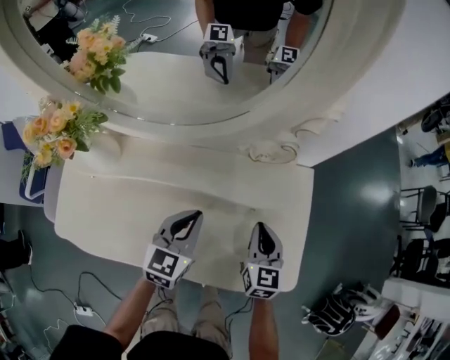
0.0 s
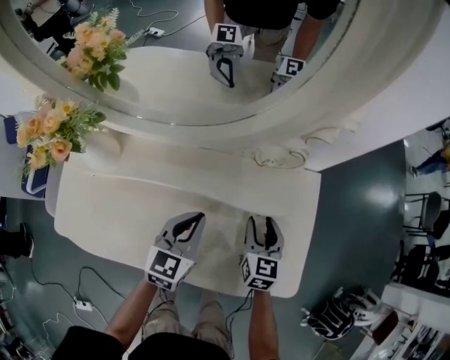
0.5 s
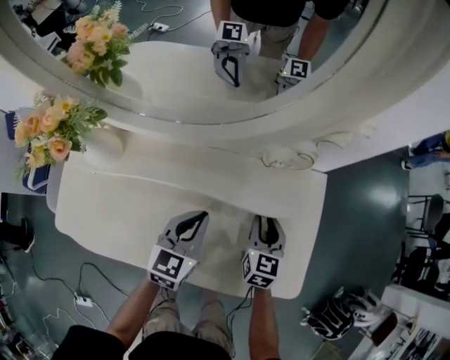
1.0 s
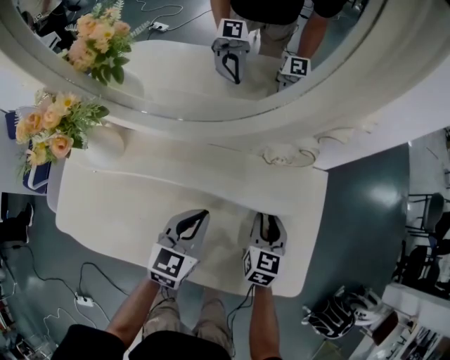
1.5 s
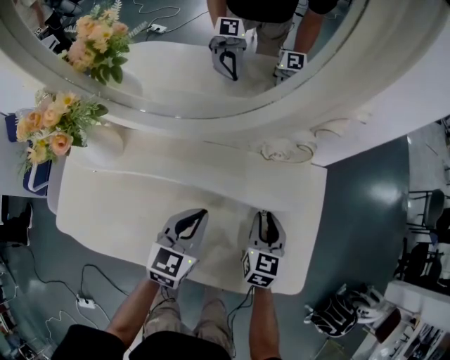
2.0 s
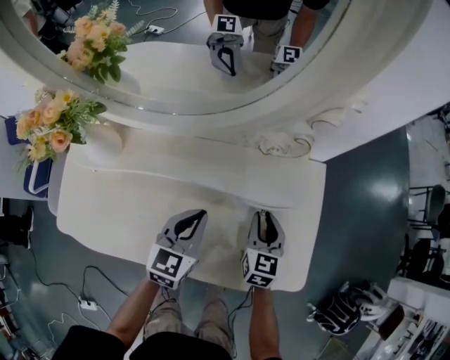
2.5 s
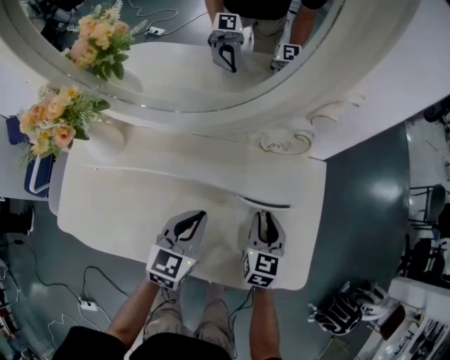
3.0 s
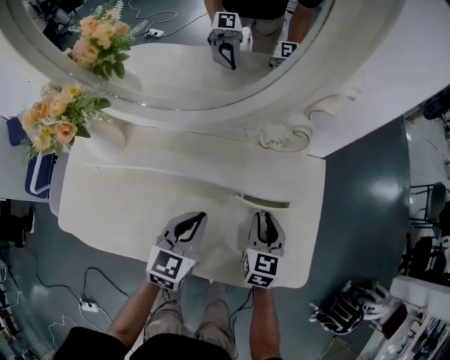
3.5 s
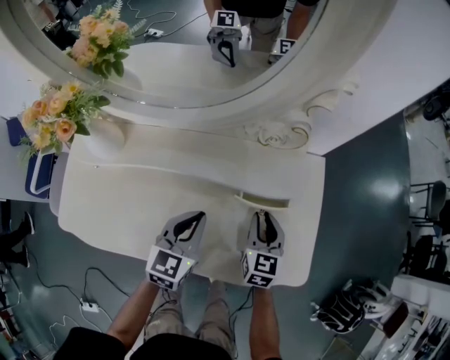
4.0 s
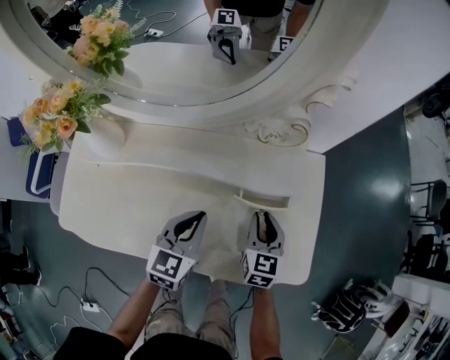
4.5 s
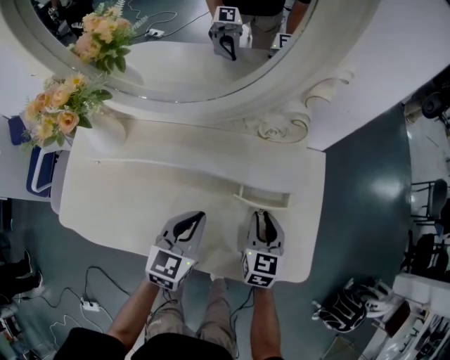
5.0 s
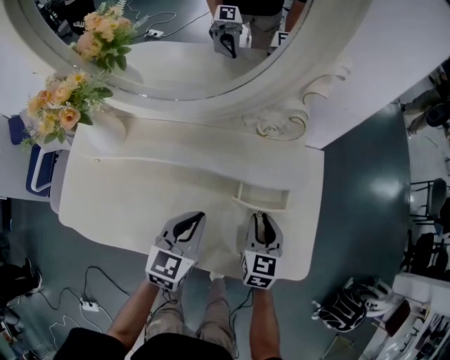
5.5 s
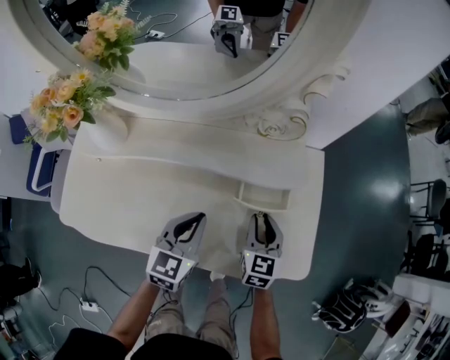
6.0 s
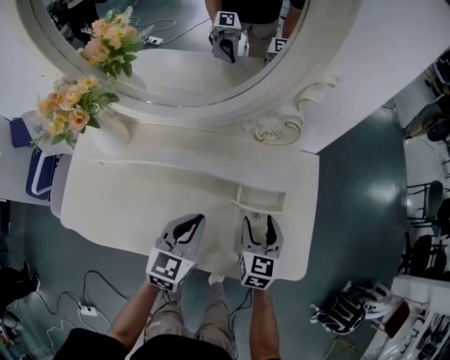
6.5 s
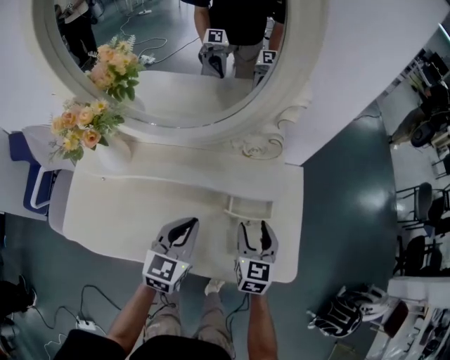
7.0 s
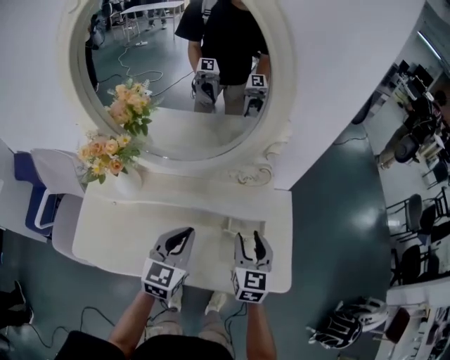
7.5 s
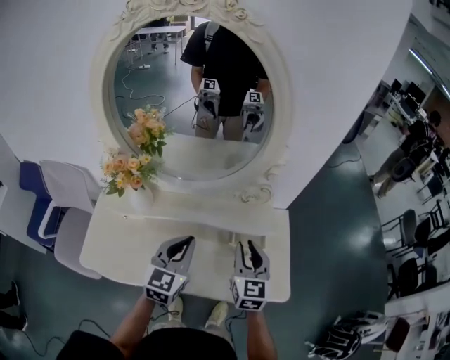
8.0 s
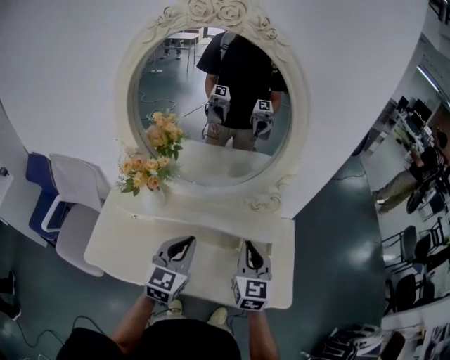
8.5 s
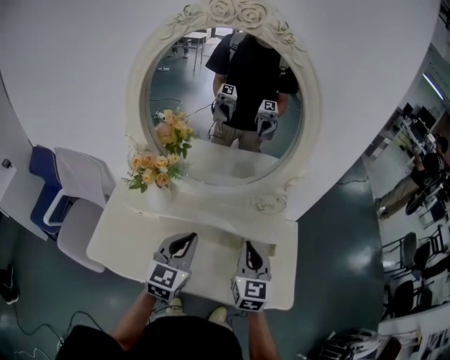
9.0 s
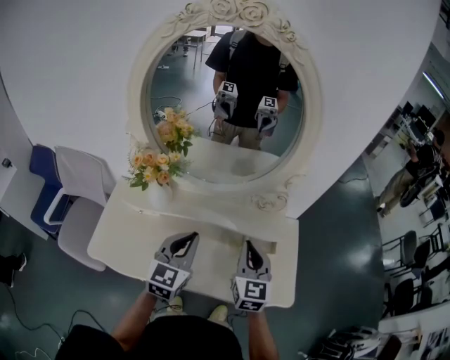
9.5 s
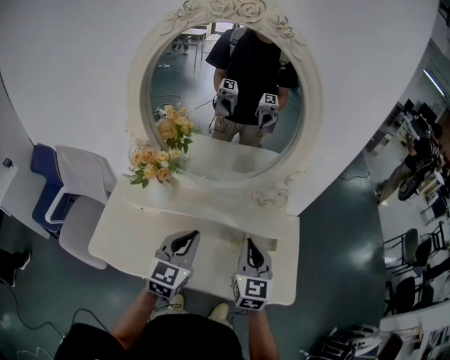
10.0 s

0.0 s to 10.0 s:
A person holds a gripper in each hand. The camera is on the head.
0.0 to 2.0 s: The right gripper shifts by about 5 cm, and opens.
2.0 to 4.0 s: The grippers make only small movements.
4.0 to 6.0 s: The grippers make only small movements.
6.0 to 8.0 s: The two grippers go some 20 cm upward. The right gripper opens, then closes again.
8.0 to 10.0 s: The right gripper goes roughly 5 cm to the left, and closes, while the left gripper moves about 5 cm.

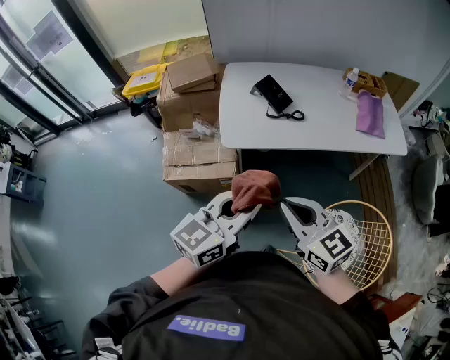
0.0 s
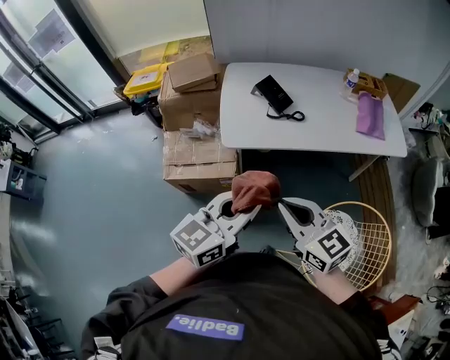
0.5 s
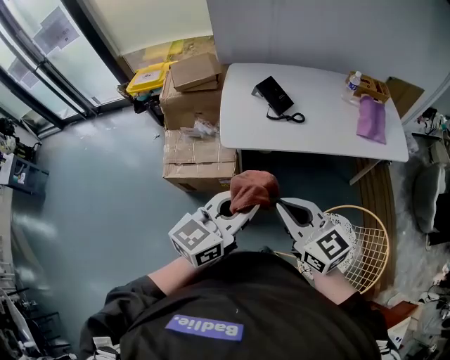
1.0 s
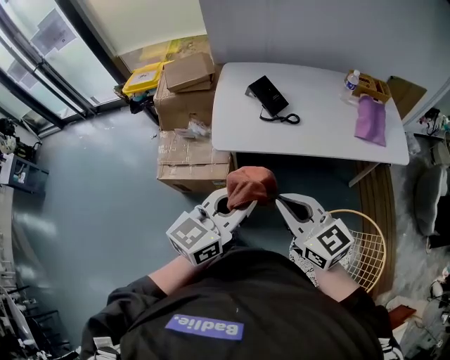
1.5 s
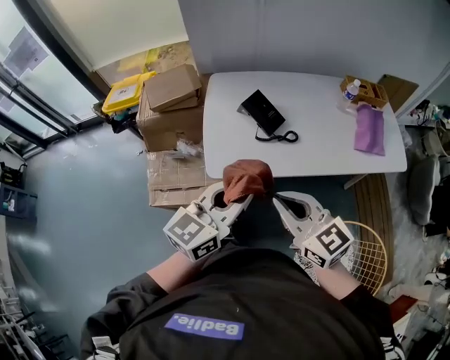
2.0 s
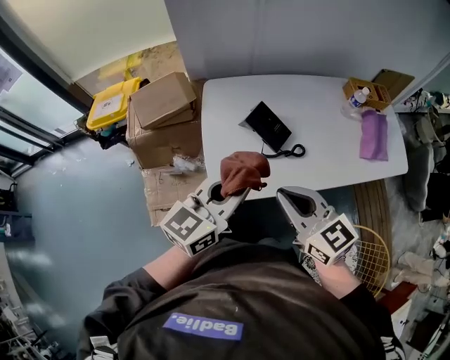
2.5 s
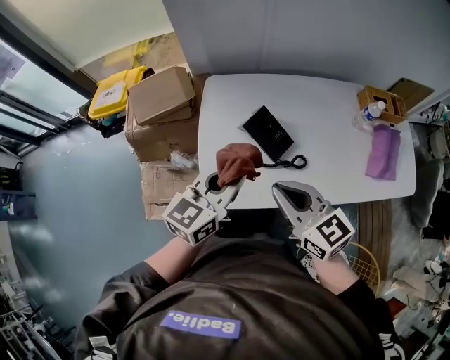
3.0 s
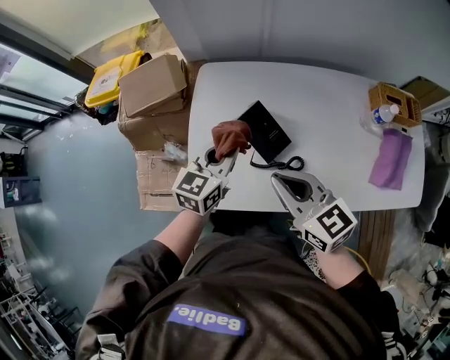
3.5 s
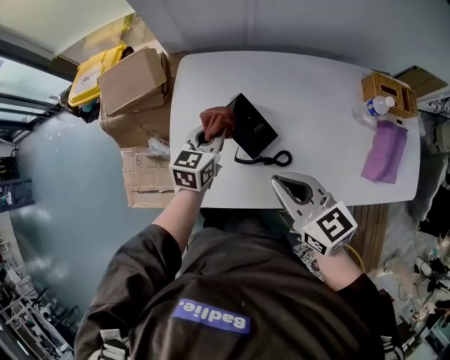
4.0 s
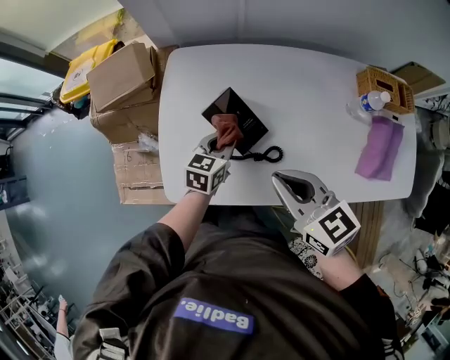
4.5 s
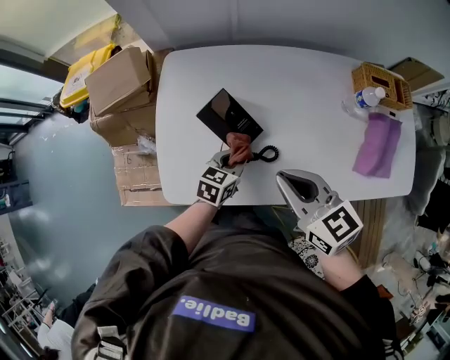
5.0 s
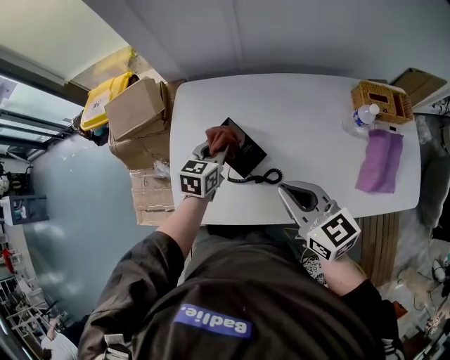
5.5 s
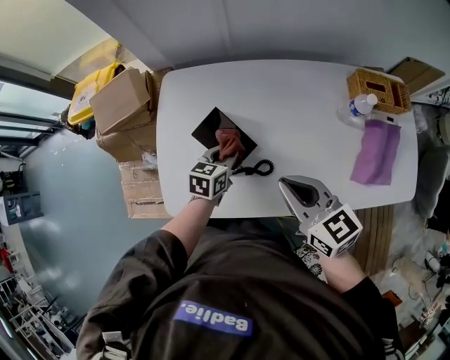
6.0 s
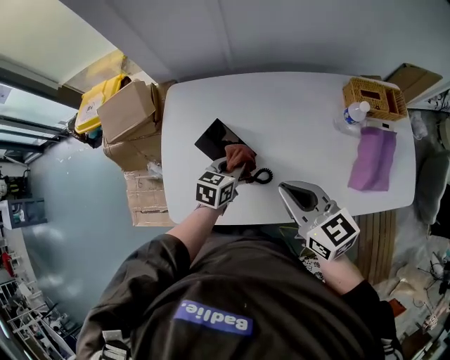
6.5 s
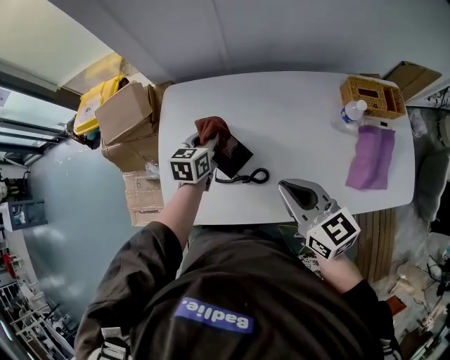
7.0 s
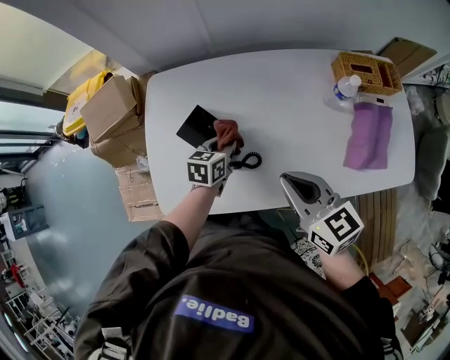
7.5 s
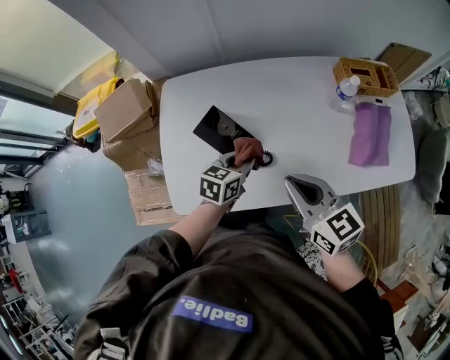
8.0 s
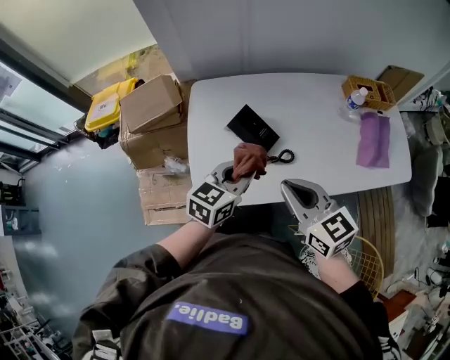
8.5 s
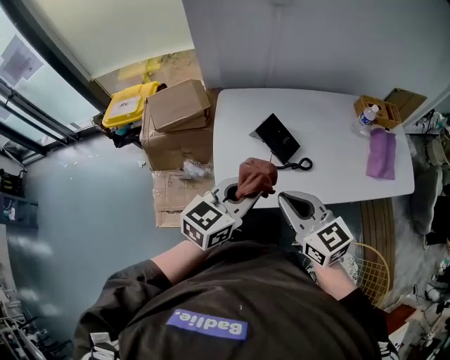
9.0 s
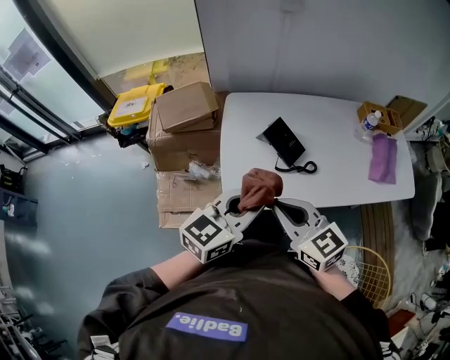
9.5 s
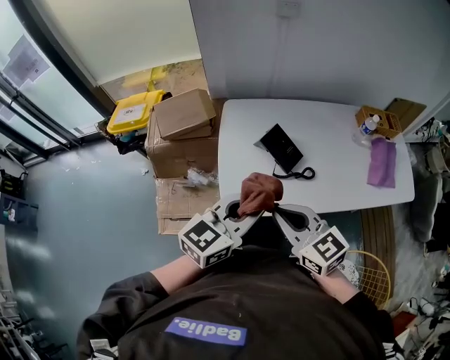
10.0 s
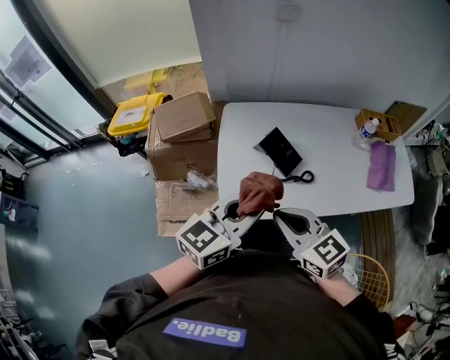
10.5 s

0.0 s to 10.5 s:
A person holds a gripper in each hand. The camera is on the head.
0.0 to 2.0 s: The two grippers go roughly 15 cm forward.
2.0 to 4.0 s: The left gripper moves forward and downward, about 40 cm, and changes its angle by some 30 degrees. Meanwhile the right gripper goes about 25 cm forward.
4.0 to 6.5 s: The right gripper travels to the right by some 10 cm. The left gripper goes left and right, roughly 15 cm each way, reversing 2 times.
6.5 to 8.5 s: The left gripper shifts about 20 cm upward, backward and to the left, and changes its angle by about 20 degrees; the right gripper heads to the left and backward, covering about 15 cm.
8.5 to 10.5 s: The right gripper is displaced to the left and backward by roughly 15 cm. The left gripper heads upward, backward and to the left, covering some 20 cm.

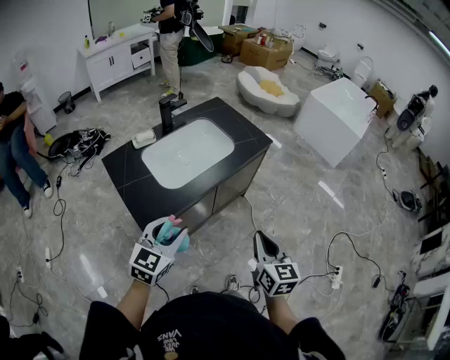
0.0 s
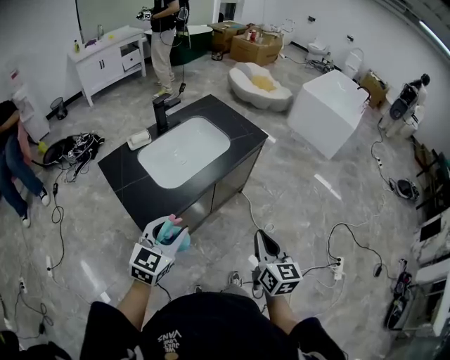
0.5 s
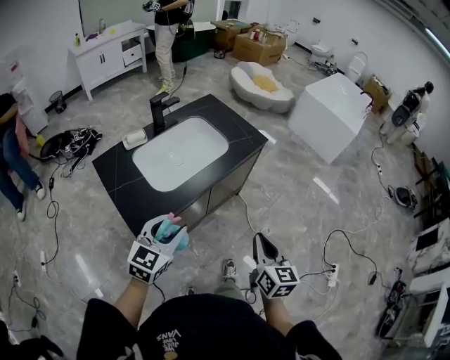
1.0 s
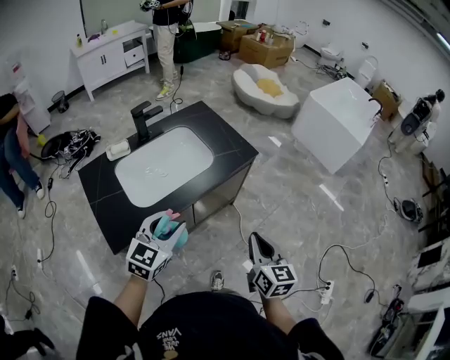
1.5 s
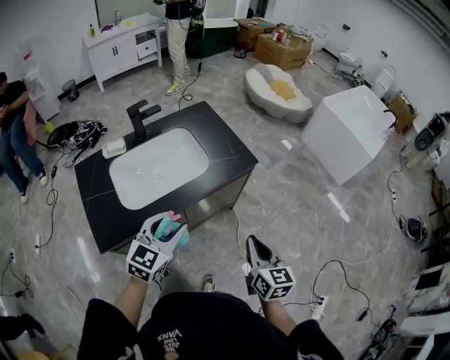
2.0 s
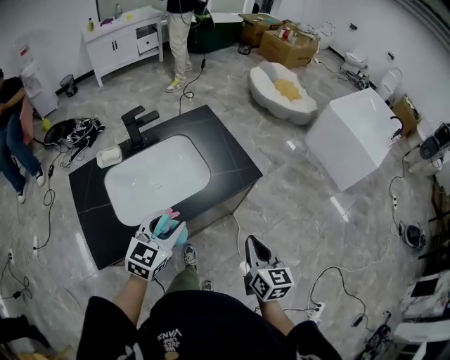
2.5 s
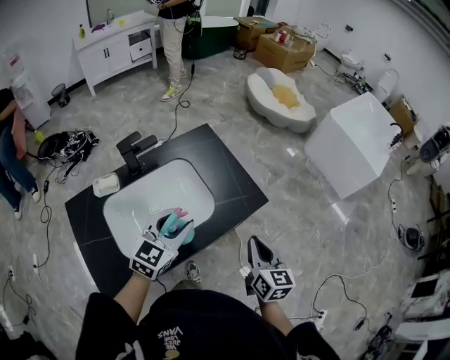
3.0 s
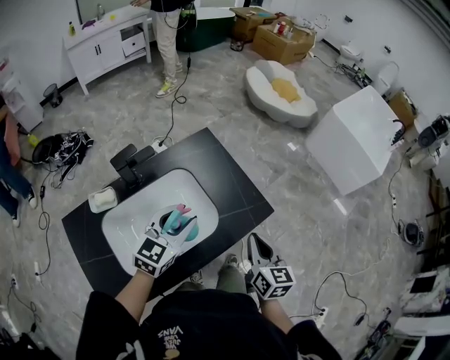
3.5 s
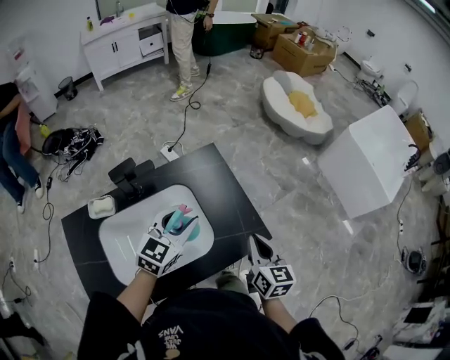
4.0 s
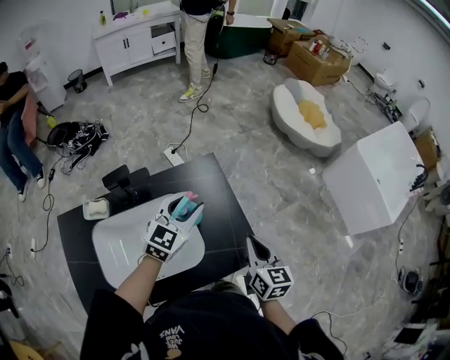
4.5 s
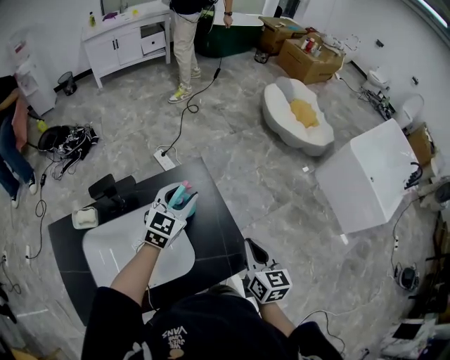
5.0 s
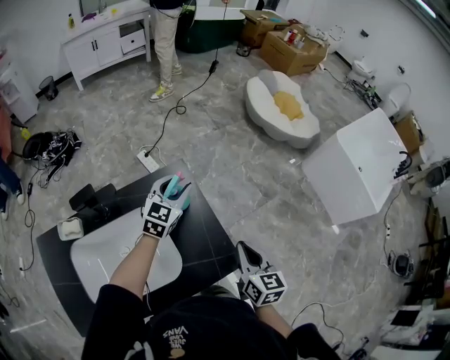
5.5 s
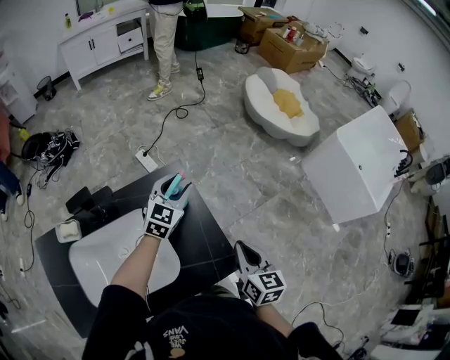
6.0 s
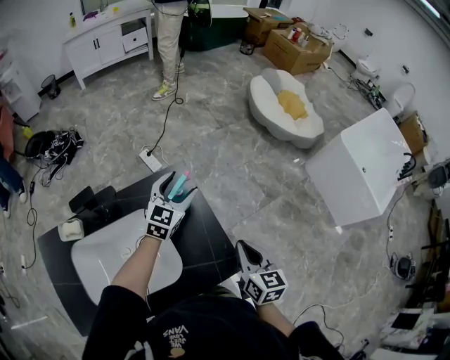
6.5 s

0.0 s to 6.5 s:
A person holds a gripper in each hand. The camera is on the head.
0.0 to 2.0 s: The two grippers go approximately 25 cm forward and to the right.
2.0 to 4.5 s: The two grippers travel together, forward, about 40 cm.
4.5 to 6.5 s: The right gripper ends up roughly 5 cm from where it was. Meanwhile the left gripper is displaced forward by approximately 15 cm, and opens its fingers.
